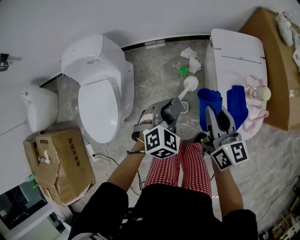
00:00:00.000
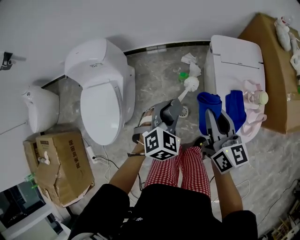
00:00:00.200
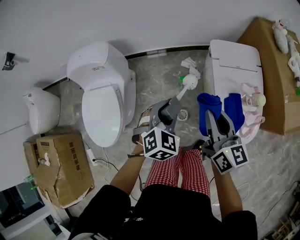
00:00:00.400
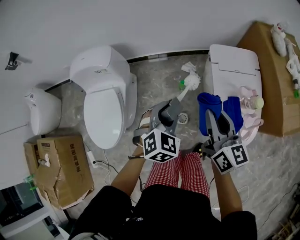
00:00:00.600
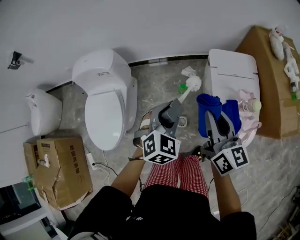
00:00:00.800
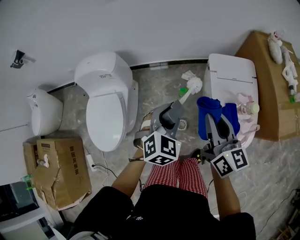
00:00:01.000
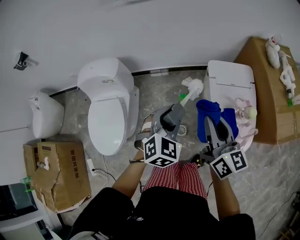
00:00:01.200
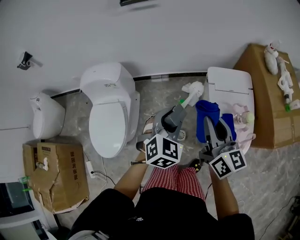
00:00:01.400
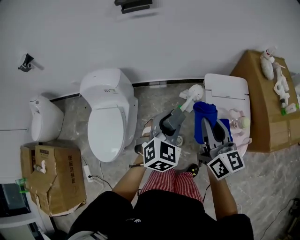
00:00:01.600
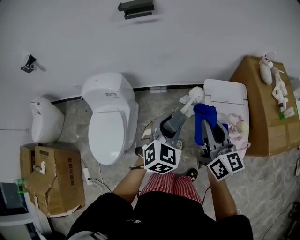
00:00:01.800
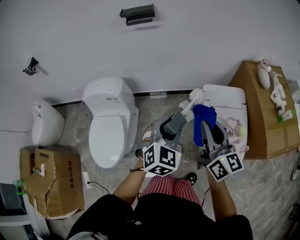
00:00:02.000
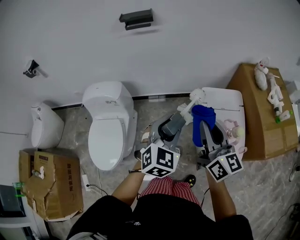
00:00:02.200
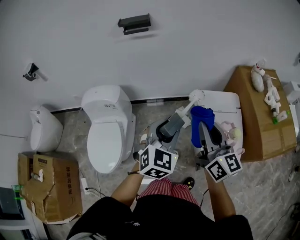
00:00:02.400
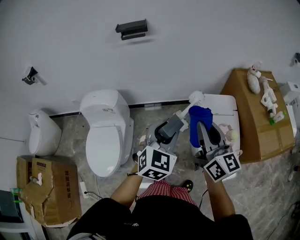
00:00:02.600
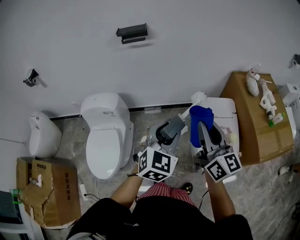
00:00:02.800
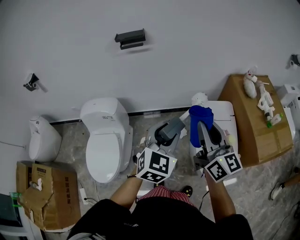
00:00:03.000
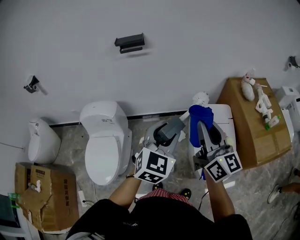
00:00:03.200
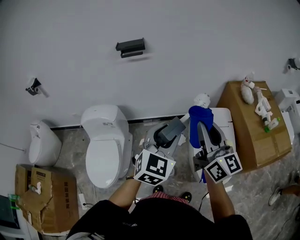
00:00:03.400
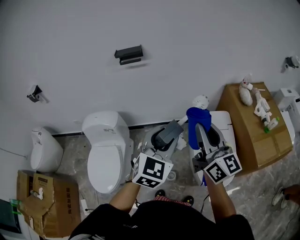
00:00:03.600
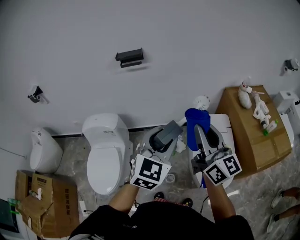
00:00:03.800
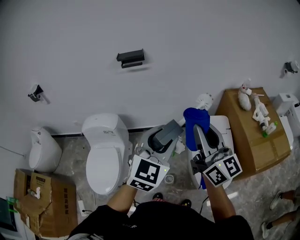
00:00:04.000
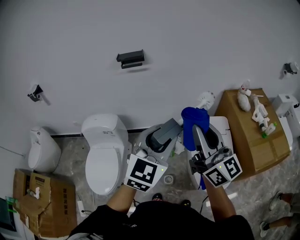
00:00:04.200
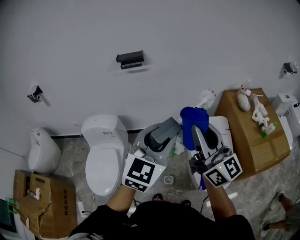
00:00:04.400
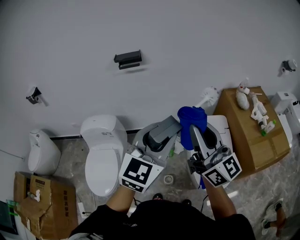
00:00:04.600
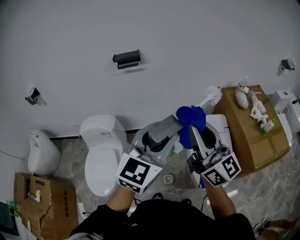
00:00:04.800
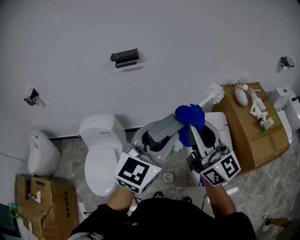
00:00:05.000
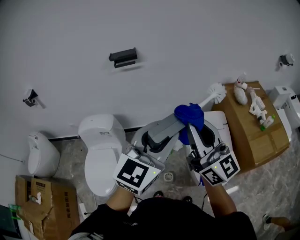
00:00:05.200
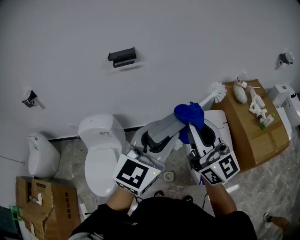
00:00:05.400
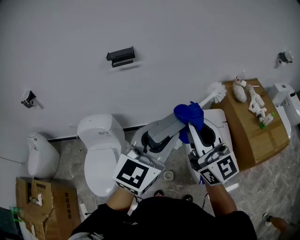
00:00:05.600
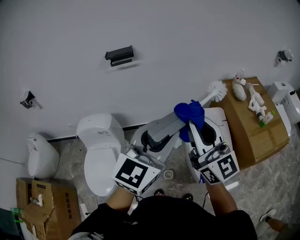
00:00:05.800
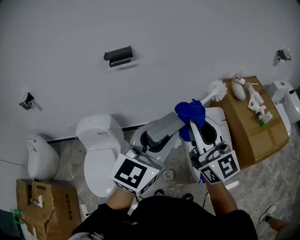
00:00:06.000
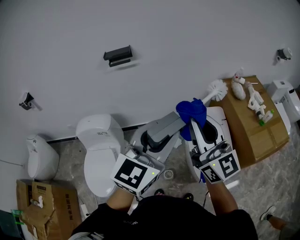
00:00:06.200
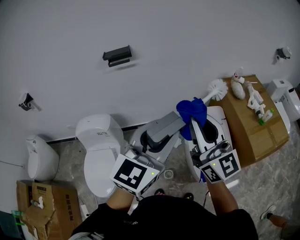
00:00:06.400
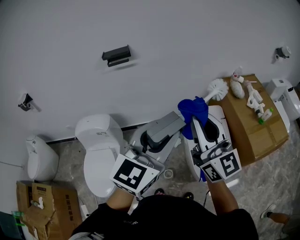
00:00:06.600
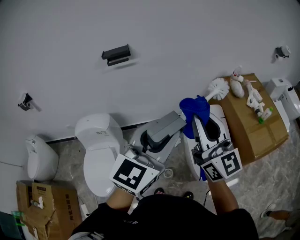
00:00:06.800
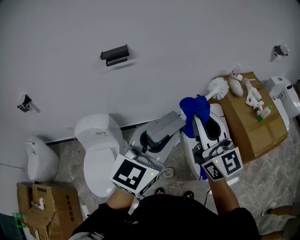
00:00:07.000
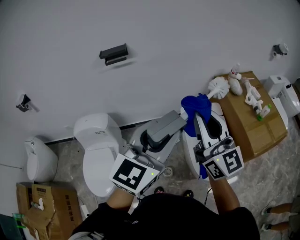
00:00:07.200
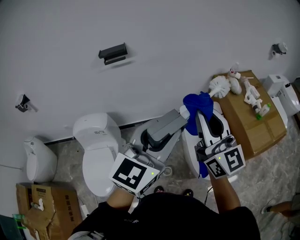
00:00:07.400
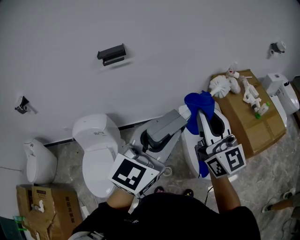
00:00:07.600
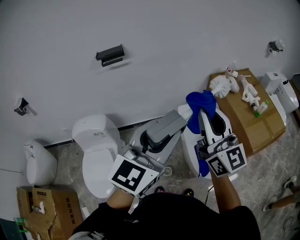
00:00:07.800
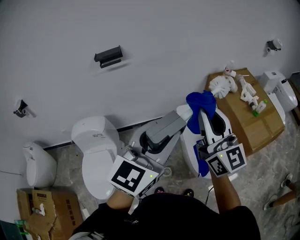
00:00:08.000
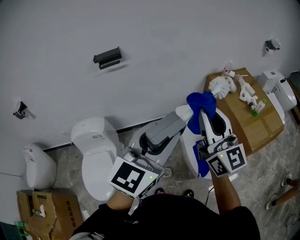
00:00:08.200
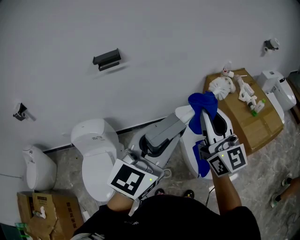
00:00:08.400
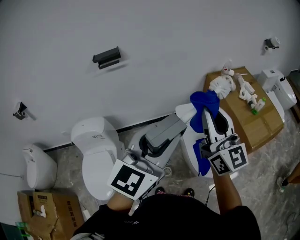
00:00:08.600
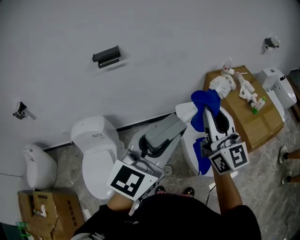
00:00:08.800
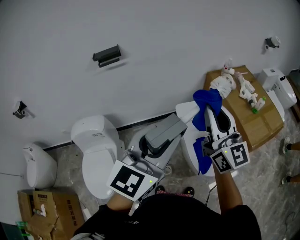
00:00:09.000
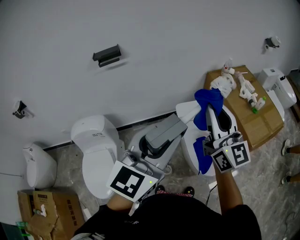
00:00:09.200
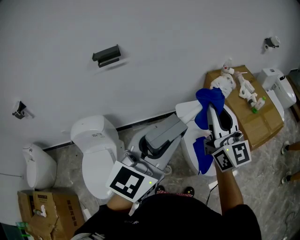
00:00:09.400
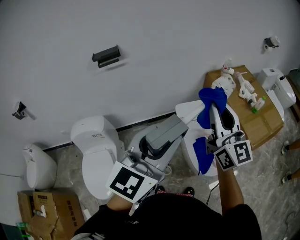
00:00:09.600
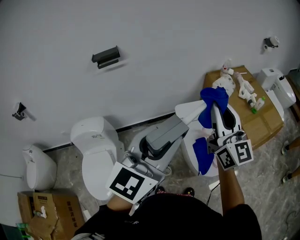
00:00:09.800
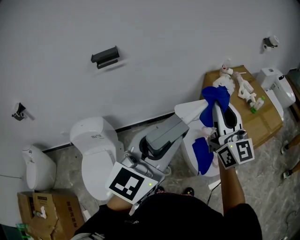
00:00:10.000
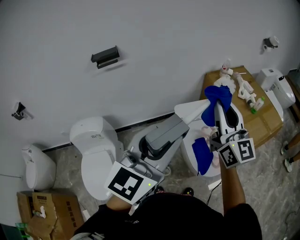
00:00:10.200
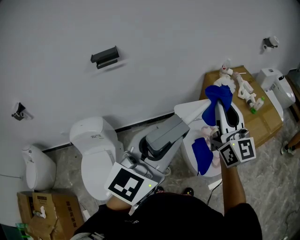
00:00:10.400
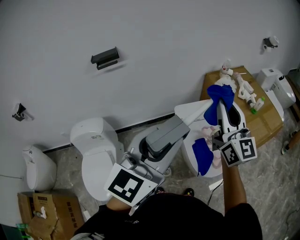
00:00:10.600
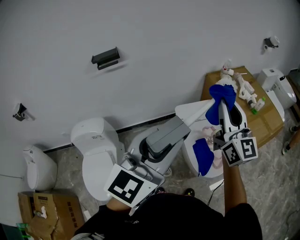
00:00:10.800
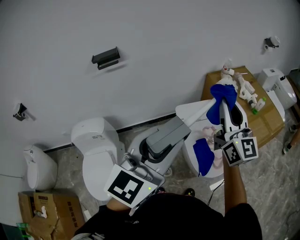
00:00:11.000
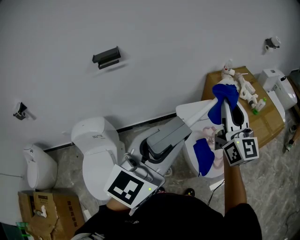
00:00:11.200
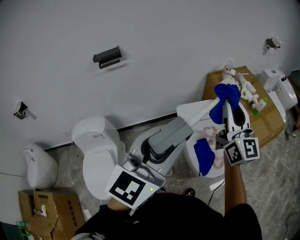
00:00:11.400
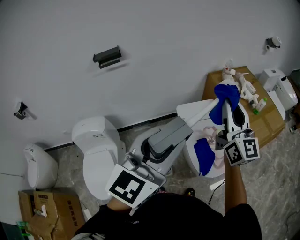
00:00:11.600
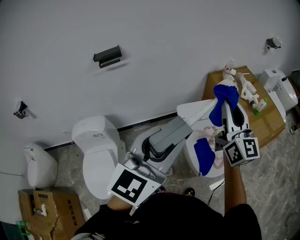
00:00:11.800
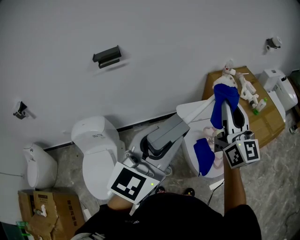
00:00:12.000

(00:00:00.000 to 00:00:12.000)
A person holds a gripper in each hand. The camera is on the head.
00:00:00.000 - 00:00:01.600: The grippers both shift upward by roughly 20 cm. The left gripper changes its angle by approximately 20 degrees.
00:00:01.600 - 00:00:03.000: The two grippers go approximately 10 cm upward.
00:00:03.000 - 00:00:04.400: Both grippers move upward, roughly 10 cm.
00:00:04.400 - 00:00:07.600: There are only small adjustments of the grippers.
00:00:07.600 - 00:00:09.000: The grippers make only small movements.
00:00:09.000 - 00:00:10.400: The grippers move only a little.
00:00:10.400 - 00:00:12.000: The grippers stay close to where they were, moving slightly.

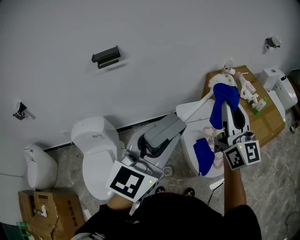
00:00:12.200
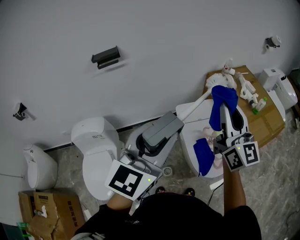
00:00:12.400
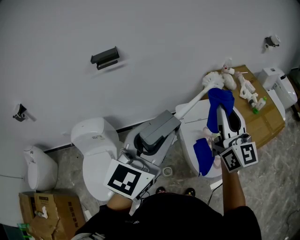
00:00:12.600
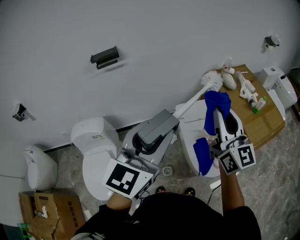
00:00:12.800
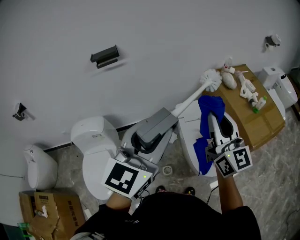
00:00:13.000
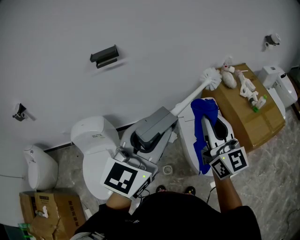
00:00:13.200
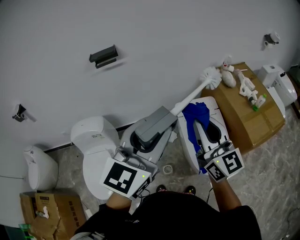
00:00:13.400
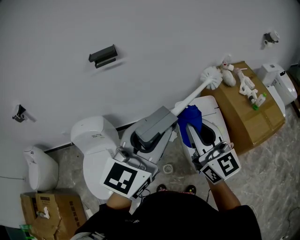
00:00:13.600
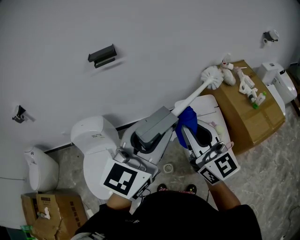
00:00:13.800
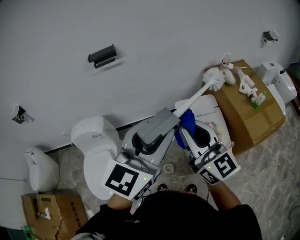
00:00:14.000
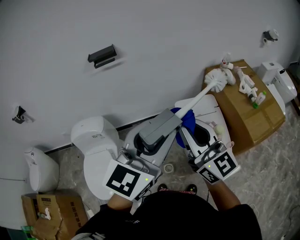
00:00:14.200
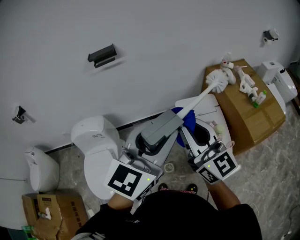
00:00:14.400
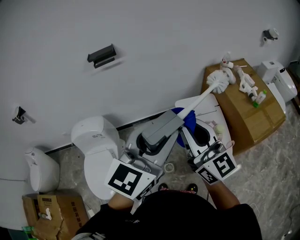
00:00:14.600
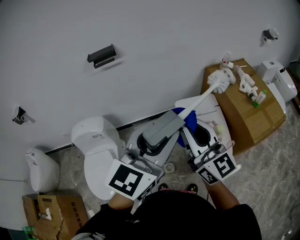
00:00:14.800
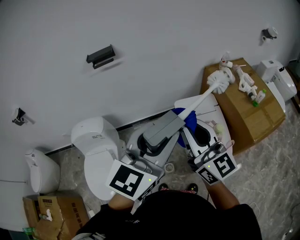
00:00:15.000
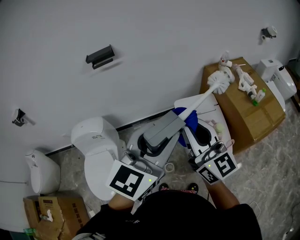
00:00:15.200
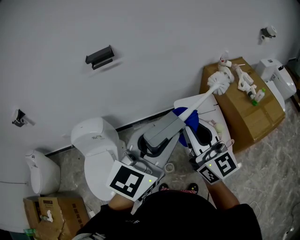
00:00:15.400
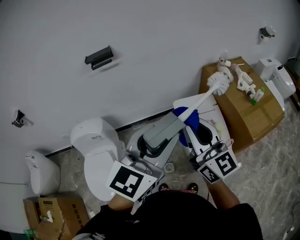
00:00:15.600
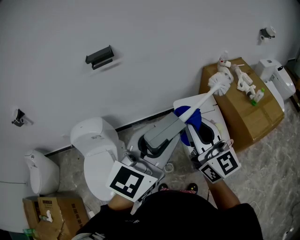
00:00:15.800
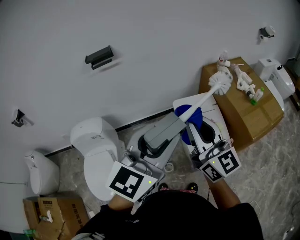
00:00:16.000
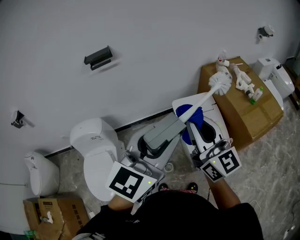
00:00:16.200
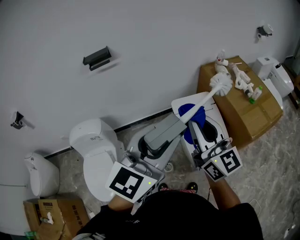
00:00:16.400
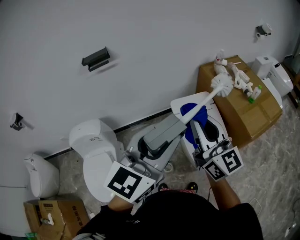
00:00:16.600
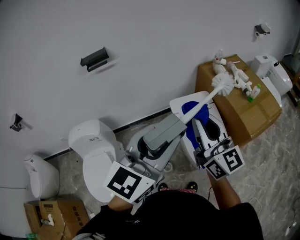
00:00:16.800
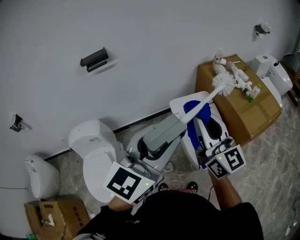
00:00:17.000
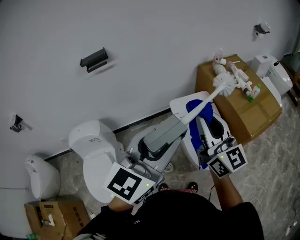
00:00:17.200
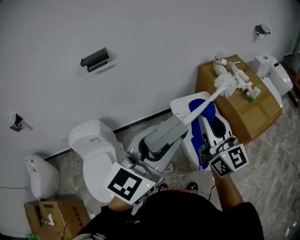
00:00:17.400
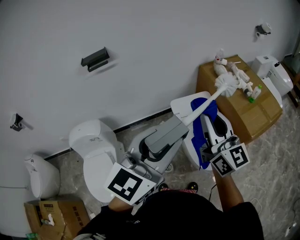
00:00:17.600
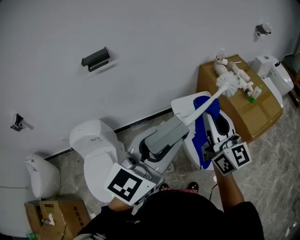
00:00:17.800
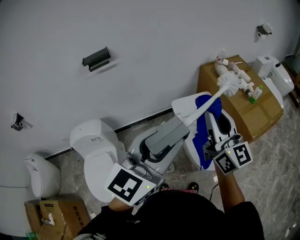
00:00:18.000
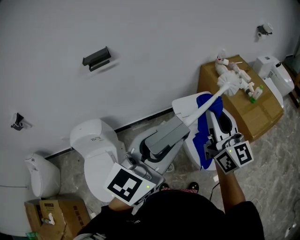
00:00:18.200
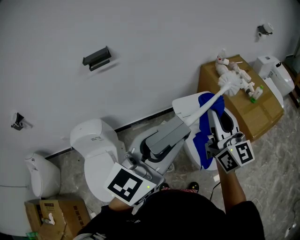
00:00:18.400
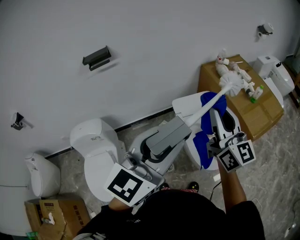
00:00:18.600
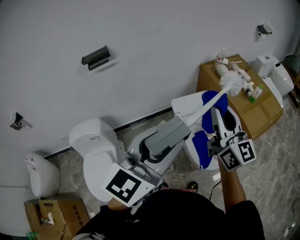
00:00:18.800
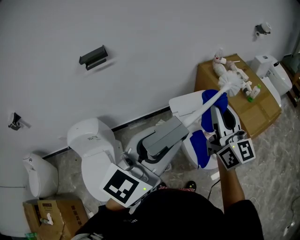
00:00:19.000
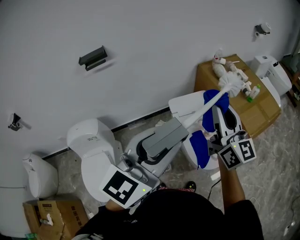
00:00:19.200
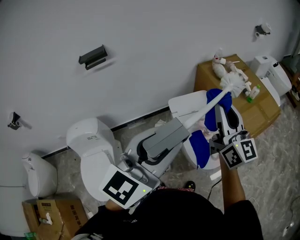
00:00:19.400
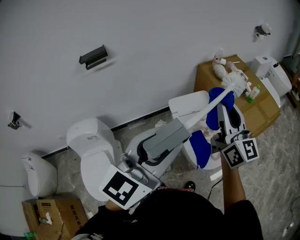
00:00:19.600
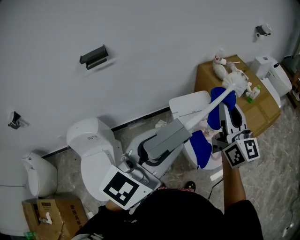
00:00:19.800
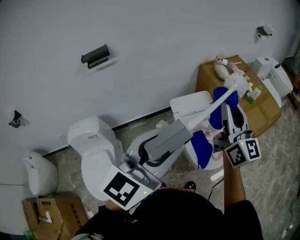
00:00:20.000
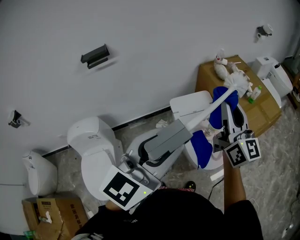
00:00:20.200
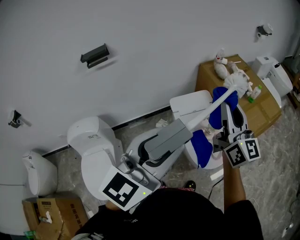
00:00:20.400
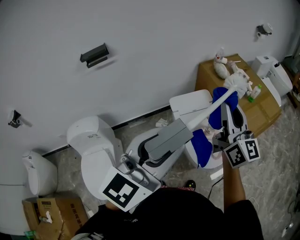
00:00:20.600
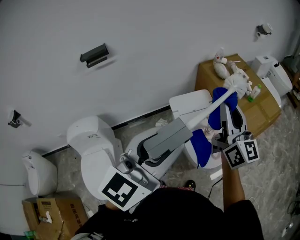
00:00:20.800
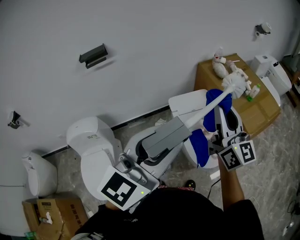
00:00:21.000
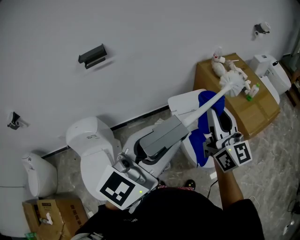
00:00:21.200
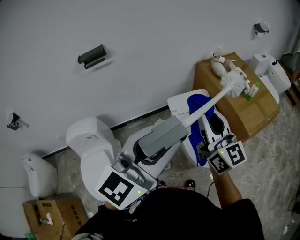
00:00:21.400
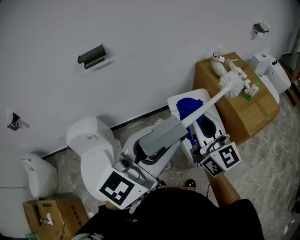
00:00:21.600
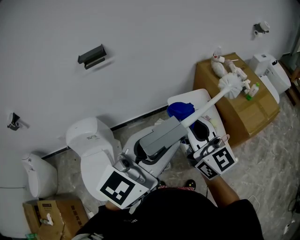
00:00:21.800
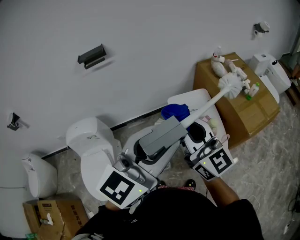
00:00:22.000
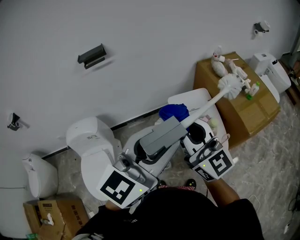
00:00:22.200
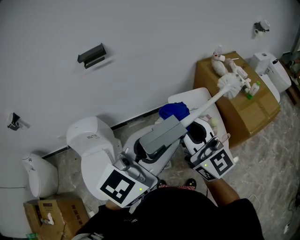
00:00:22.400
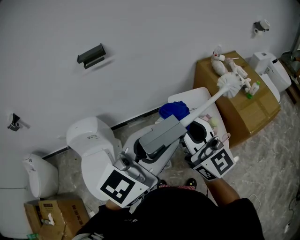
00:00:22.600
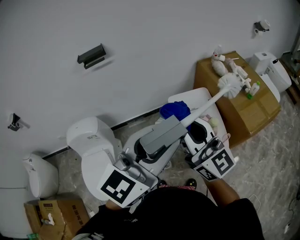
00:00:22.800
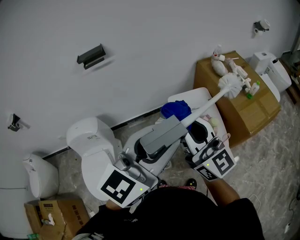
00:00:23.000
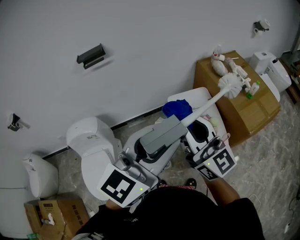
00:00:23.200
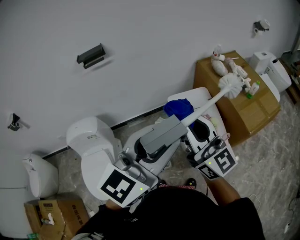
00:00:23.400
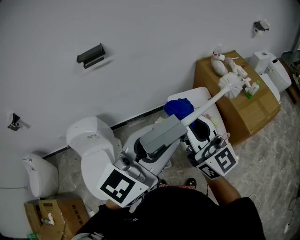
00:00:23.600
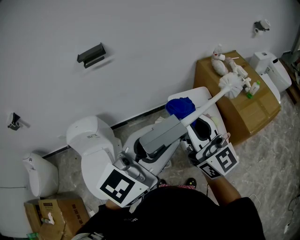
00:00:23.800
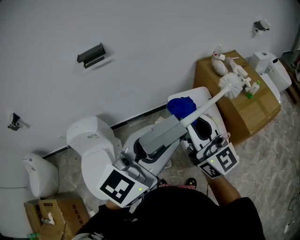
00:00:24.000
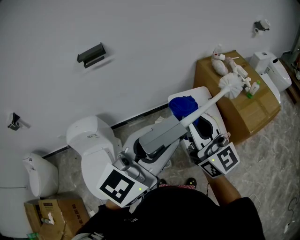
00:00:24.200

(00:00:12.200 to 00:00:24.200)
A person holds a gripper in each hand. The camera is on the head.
00:00:12.200 - 00:00:13.800: The right gripper heads to the left, backward and downward, covering approximately 15 cm, and swivels some 20 degrees.
00:00:13.800 - 00:00:16.600: The grippers move only a little.
00:00:16.600 - 00:00:18.200: The right gripper changes place by about 5 cm.
00:00:18.200 - 00:00:19.800: The right gripper moves roughly 5 cm.
00:00:19.800 - 00:00:21.200: The grippers make only small movements.
00:00:21.200 - 00:00:22.600: The right gripper is displaced to the left and backward by about 10 cm.
00:00:22.600 - 00:00:24.200: The grippers stay close to where they were, moving slightly.
